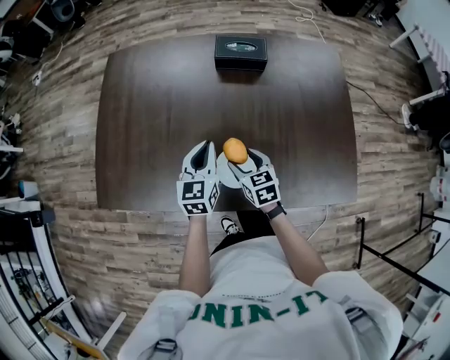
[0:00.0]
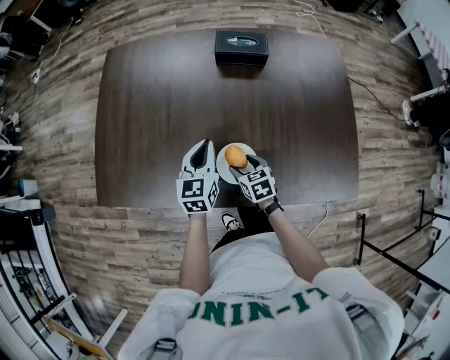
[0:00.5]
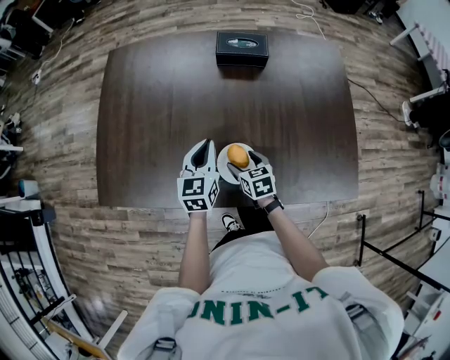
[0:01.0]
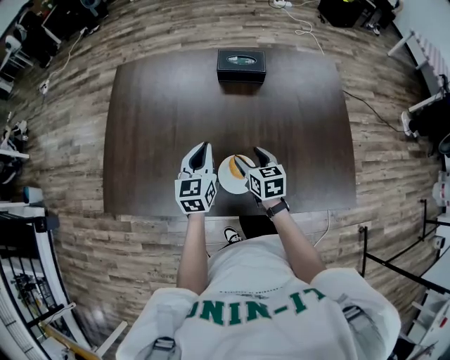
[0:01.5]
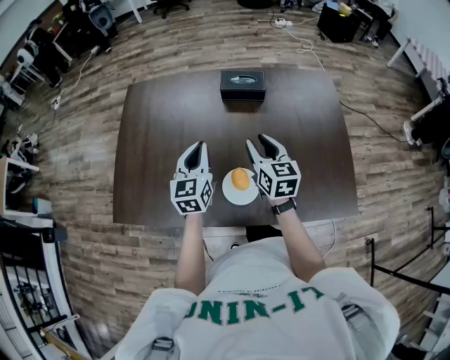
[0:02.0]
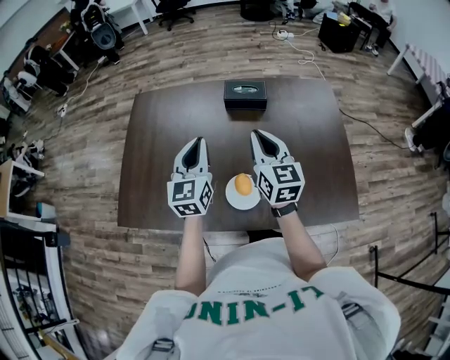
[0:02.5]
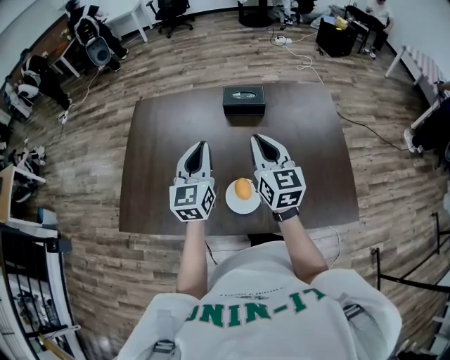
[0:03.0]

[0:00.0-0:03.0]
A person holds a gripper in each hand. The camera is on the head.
0:00.0 to 0:01.5: The right gripper goes downward and returns, roughly 5 cm each way.
0:01.5 to 0:03.0: The right gripper travels upward by some 25 cm, changes its angle by approximately 30 degrees, and closes up. Meanwhile the left gripper shifts some 15 cm upward.

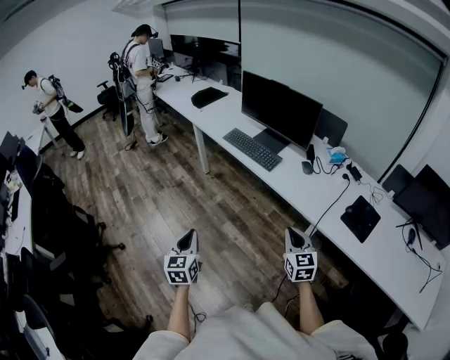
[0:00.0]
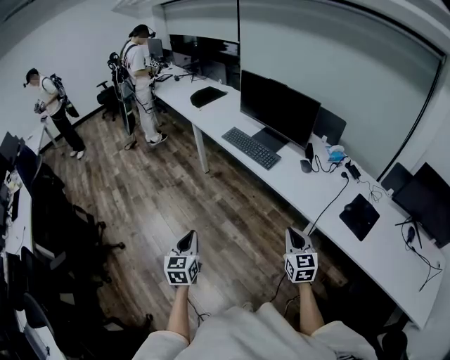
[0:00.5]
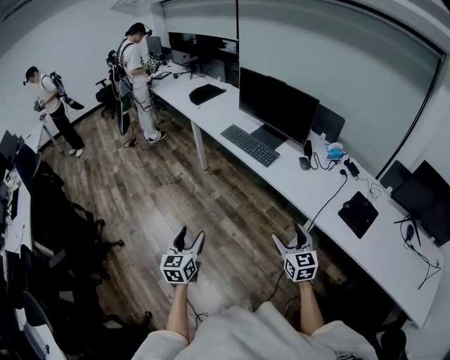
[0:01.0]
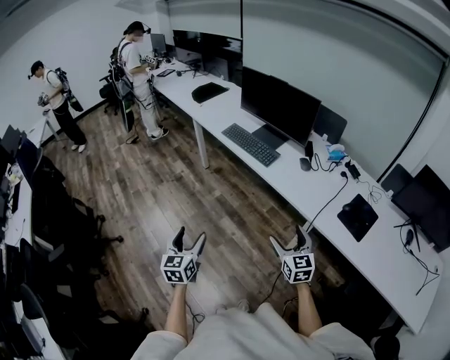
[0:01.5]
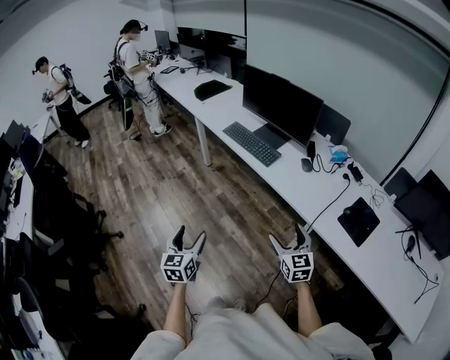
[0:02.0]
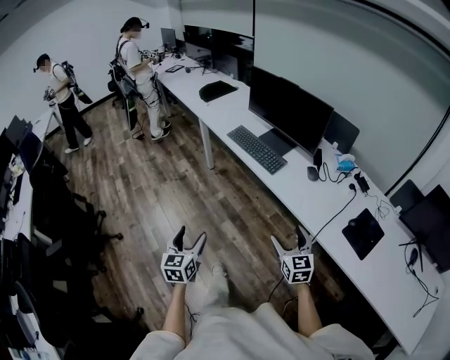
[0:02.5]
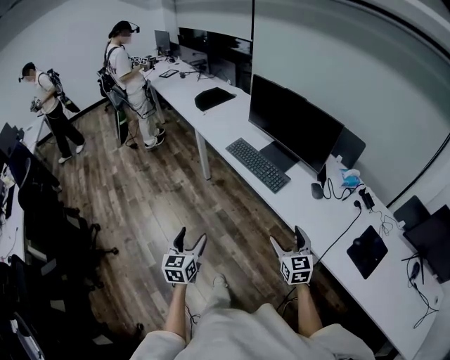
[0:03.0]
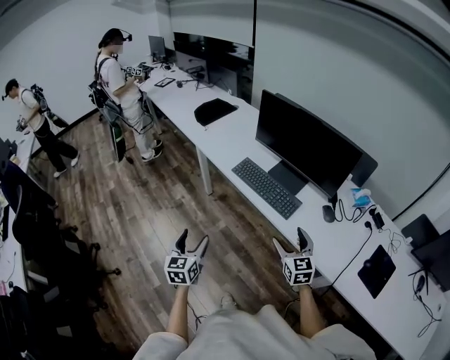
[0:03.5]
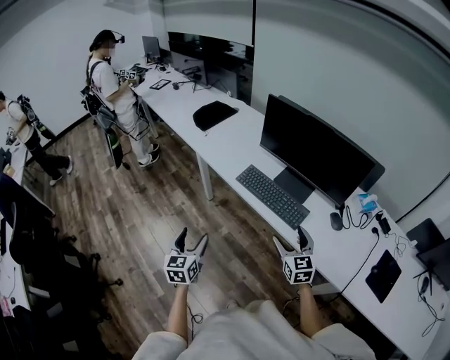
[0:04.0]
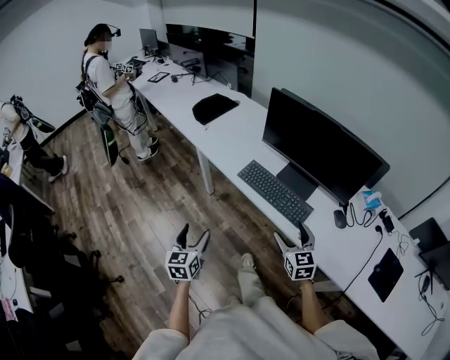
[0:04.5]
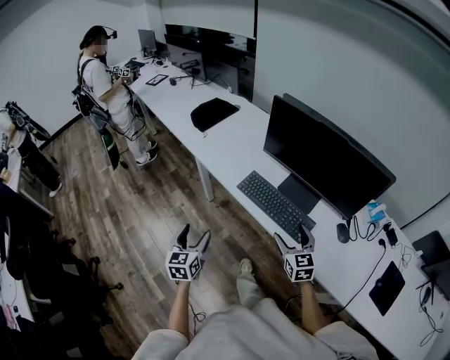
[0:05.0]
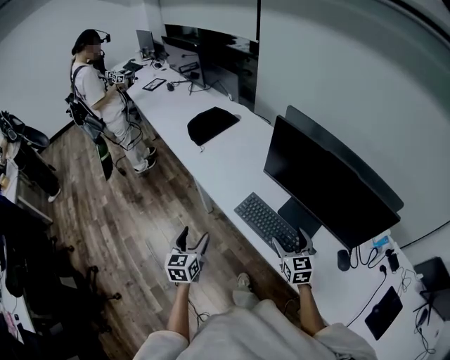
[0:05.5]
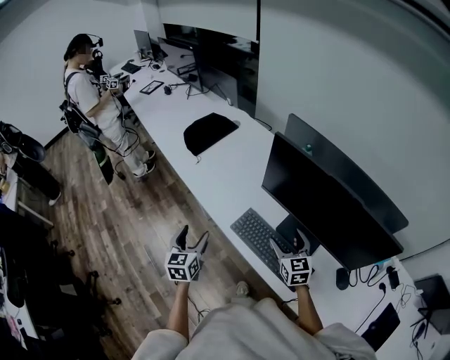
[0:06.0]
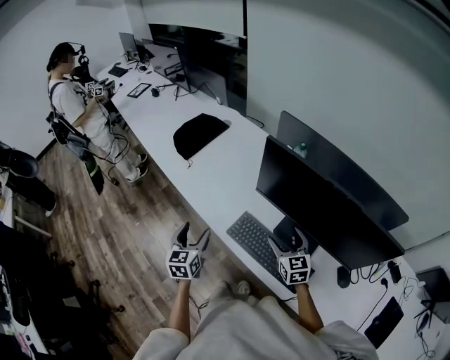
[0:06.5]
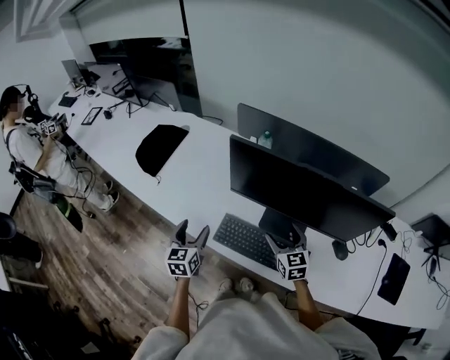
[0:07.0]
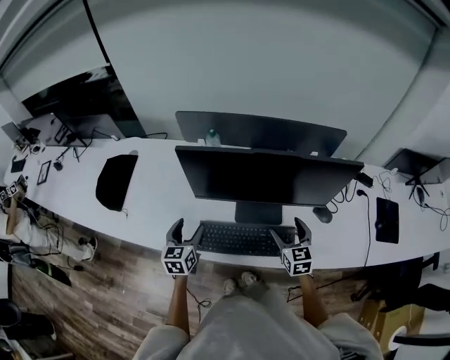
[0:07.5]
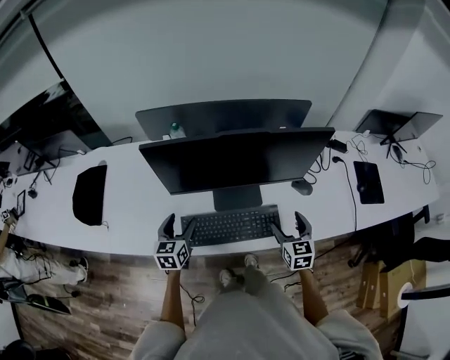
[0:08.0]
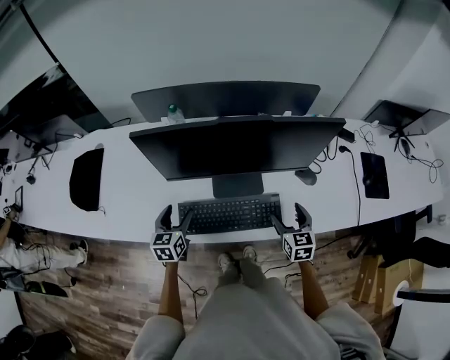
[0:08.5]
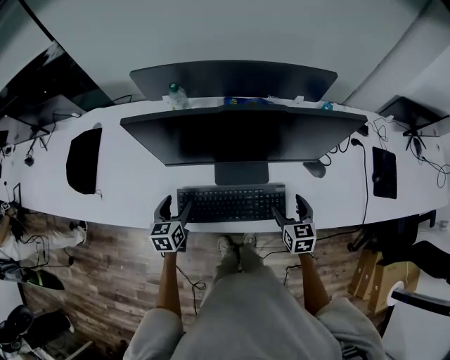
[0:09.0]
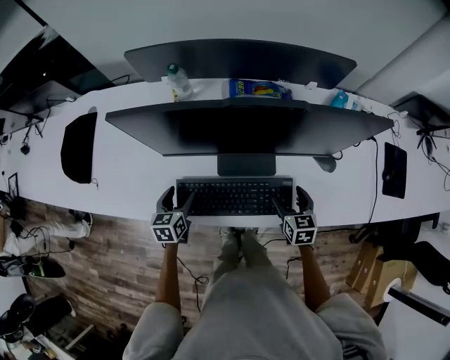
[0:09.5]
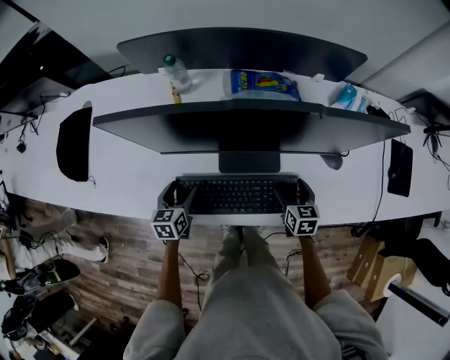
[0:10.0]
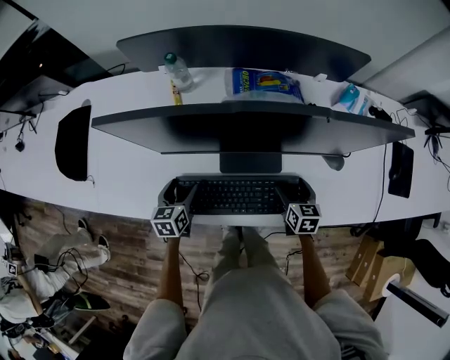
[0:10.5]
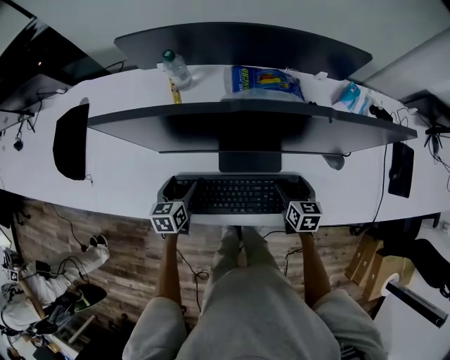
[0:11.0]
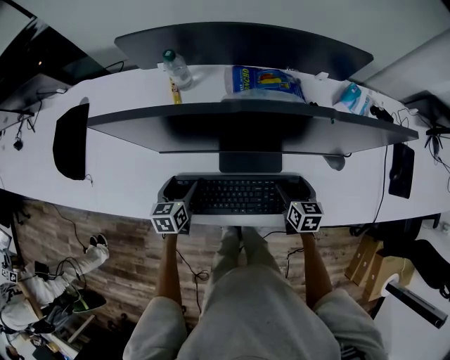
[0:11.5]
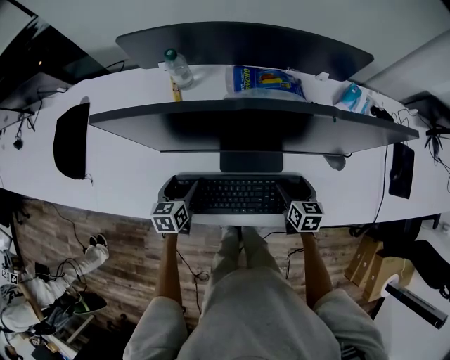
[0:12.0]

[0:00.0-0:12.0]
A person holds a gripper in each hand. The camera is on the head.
0:00.0 to 0:02.0: The left gripper goes some 5 cm to the right, and opens its fingers; the right gripper opens.
0:02.0 to 0:04.0: The pair of grippers is taken forward, about 40 cm.
0:04.0 to 0:06.0: The two grippers go approximately 35 cm forward.
0:06.0 to 0:08.0: The right gripper changes place by about 20 cm, and rotates about 50 degrees. Meanwhile the left gripper changes place by roughly 25 cm, and changes its angle by about 50 degrees.
0:08.0 to 0:10.0: The left gripper moves downward, roughly 15 cm; the right gripper goes approximately 15 cm downward and forward, and swivels some 20 degrees.
0:10.0 to 0:12.0: There are only small adjustments of the grippers.

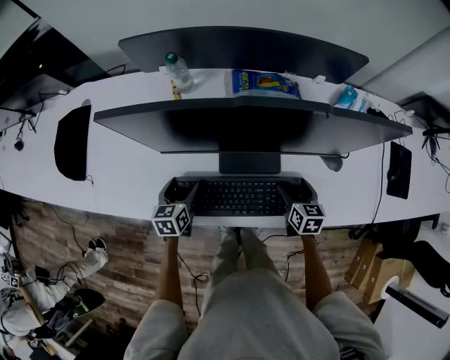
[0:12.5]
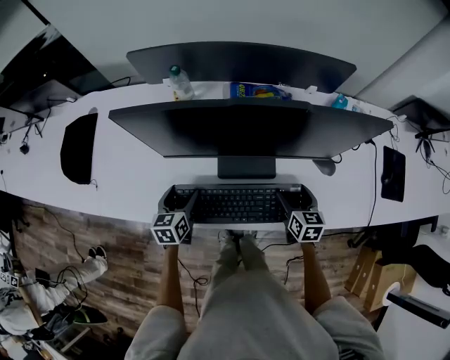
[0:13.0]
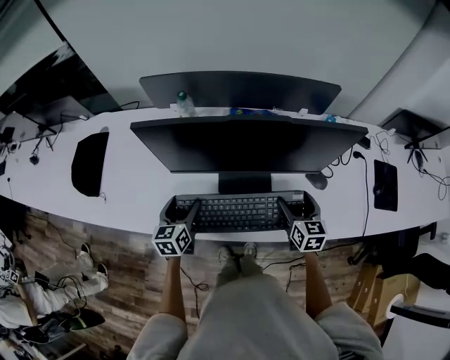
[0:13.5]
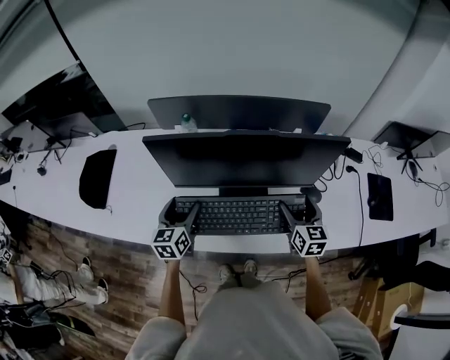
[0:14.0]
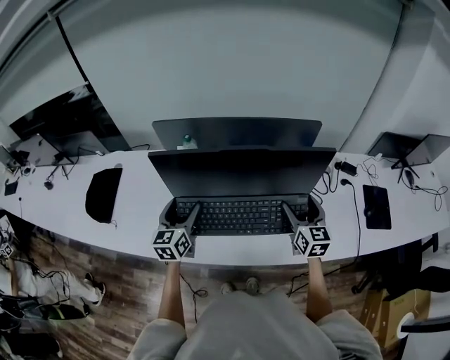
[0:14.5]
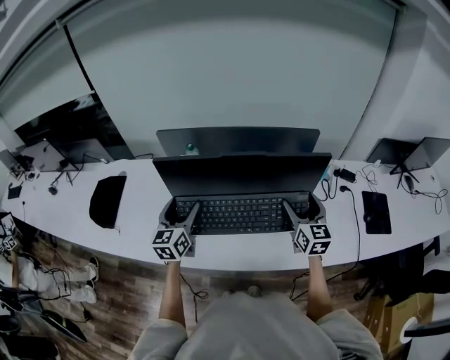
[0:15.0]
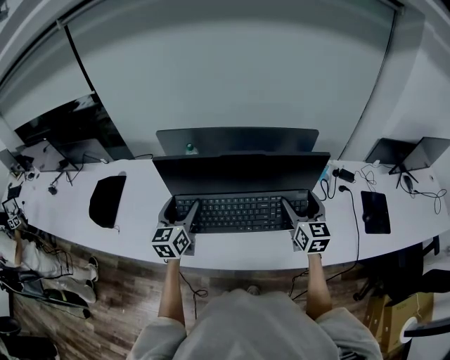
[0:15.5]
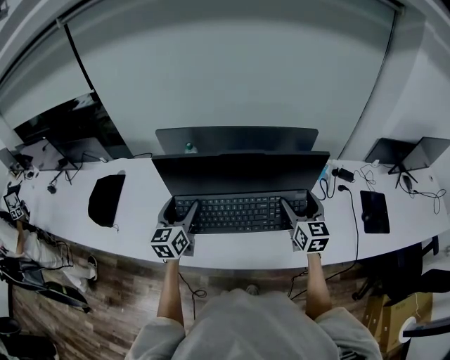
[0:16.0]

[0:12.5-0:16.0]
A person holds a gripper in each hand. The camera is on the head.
0:12.5 to 0:14.5: The grippers both shift upward by some 25 cm. The right gripper swivels roughly 30 degrees. The left gripper turns by some 30 degrees.
0:14.5 to 0:16.0: The grippers stay close to where they were, moving slightly.

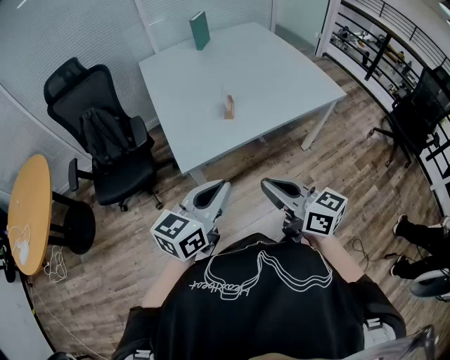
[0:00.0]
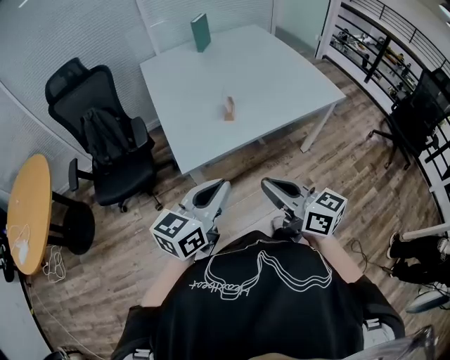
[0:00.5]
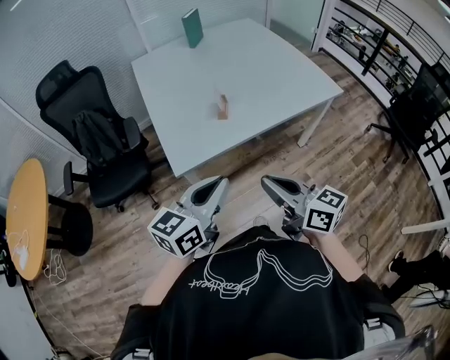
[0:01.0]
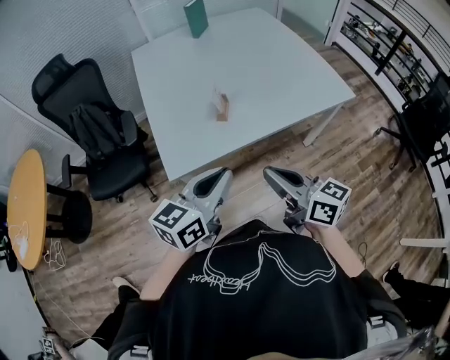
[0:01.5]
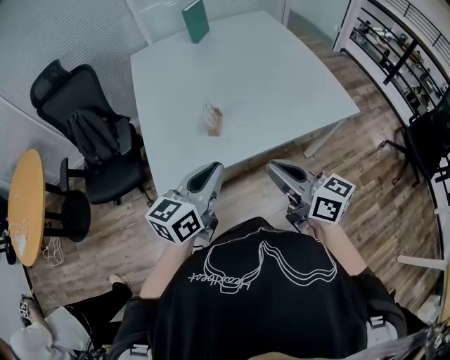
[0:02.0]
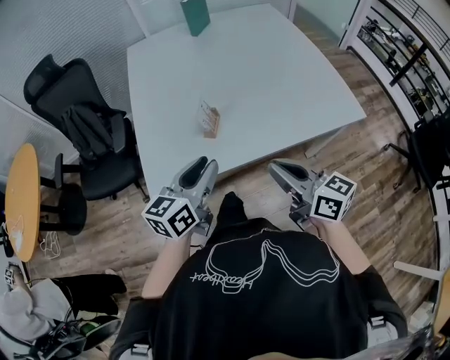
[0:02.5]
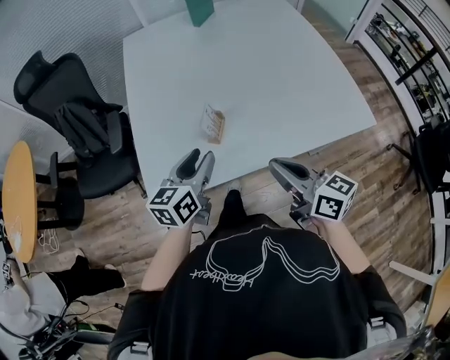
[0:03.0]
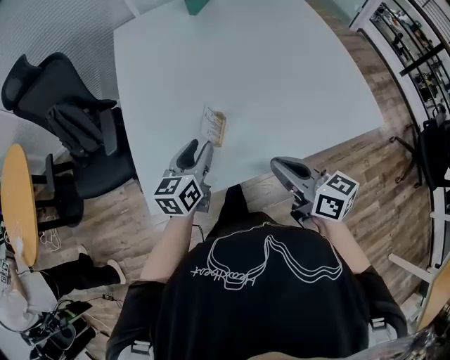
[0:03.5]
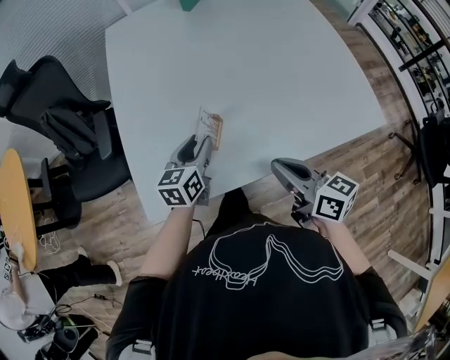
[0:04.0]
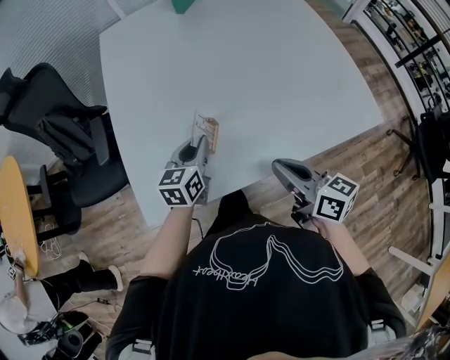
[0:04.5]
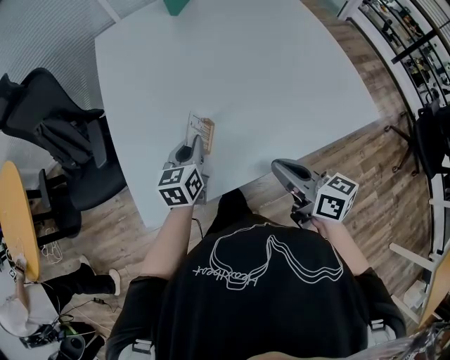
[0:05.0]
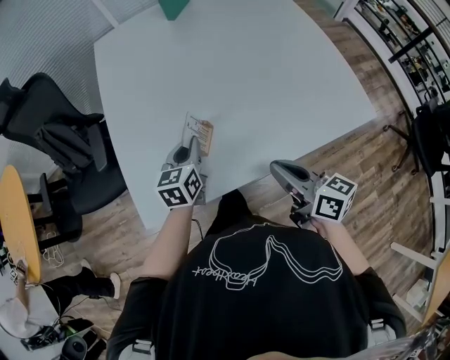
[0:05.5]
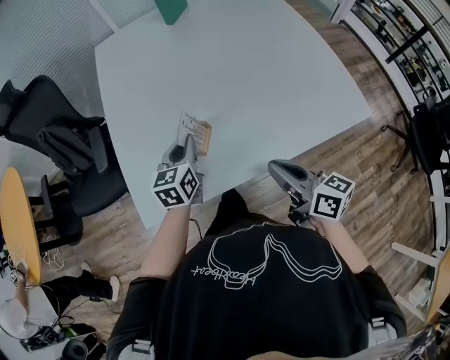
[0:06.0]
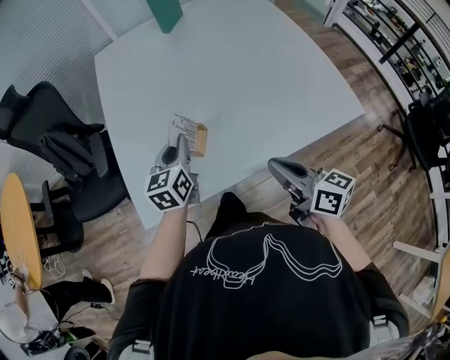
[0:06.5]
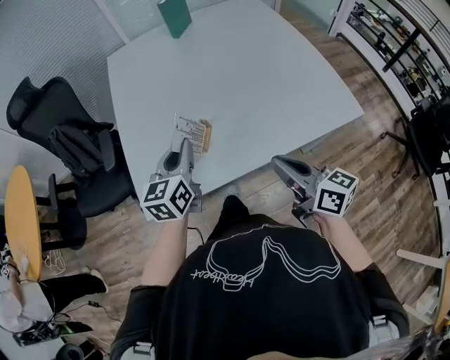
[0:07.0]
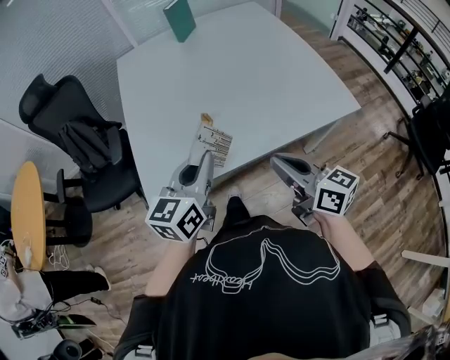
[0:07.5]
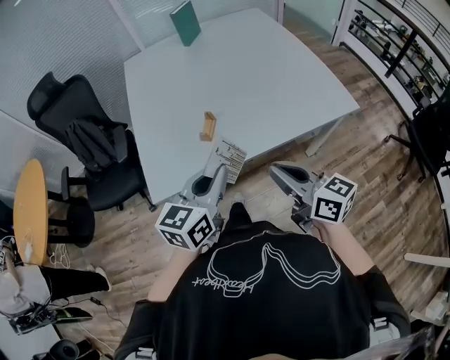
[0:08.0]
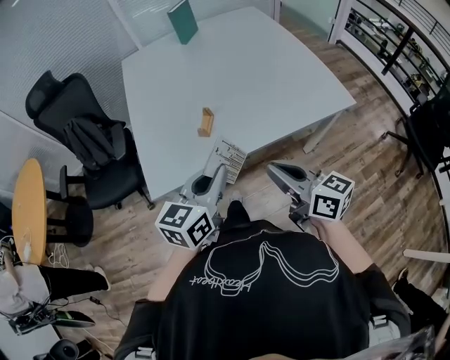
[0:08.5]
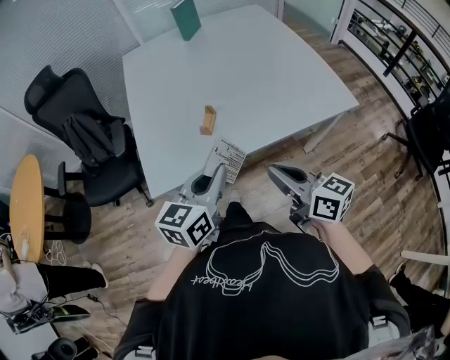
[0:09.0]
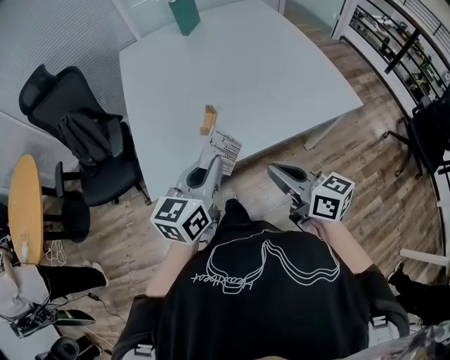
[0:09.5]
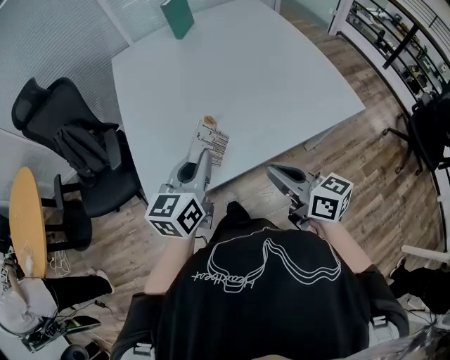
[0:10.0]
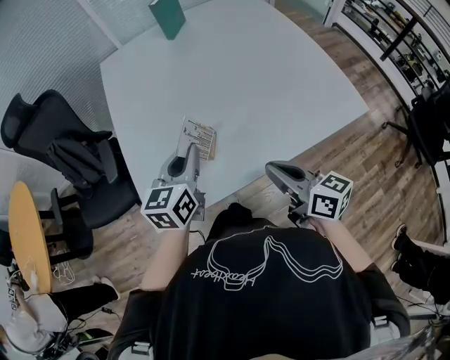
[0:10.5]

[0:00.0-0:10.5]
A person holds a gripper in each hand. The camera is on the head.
0:00.0 to 0:02.0: The grippers both shift forward and to the right by approximately 25 cm.
0:02.0 to 0:04.0: The right gripper heads forward and downward, covering roughly 20 cm; the left gripper travels forward and downward by some 30 cm, turns by about 20 degrees, and opens up.
0:04.0 to 0:06.5: The right gripper changes place by about 5 cm; the left gripper shifts about 5 cm upward, and closes its fingers.
0:06.5 to 0:08.5: The right gripper travels backward and upward by about 15 cm. The left gripper moves backward and upward, roughly 25 cm, and rotates about 20 degrees.
0:08.5 to 0:10.5: The right gripper moves forward, about 15 cm, while the left gripper shifts about 20 cm forward.
